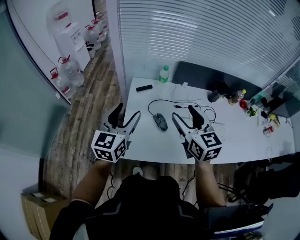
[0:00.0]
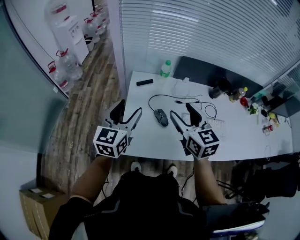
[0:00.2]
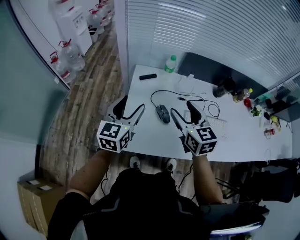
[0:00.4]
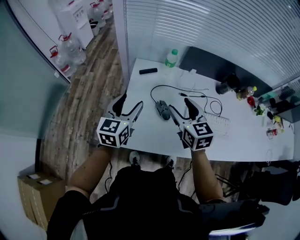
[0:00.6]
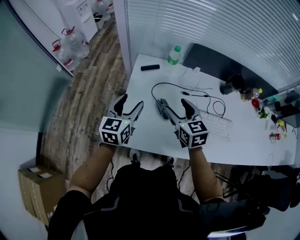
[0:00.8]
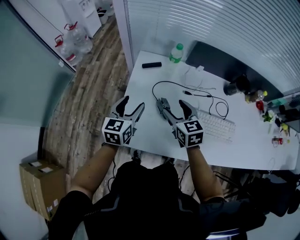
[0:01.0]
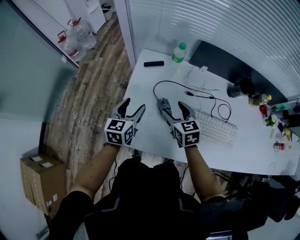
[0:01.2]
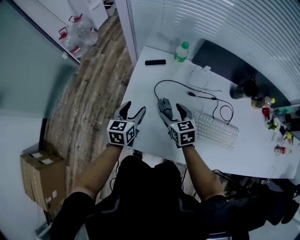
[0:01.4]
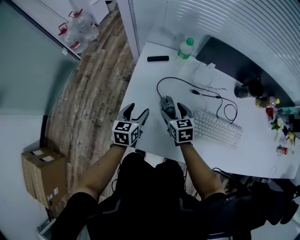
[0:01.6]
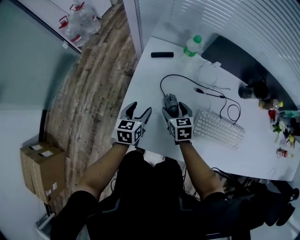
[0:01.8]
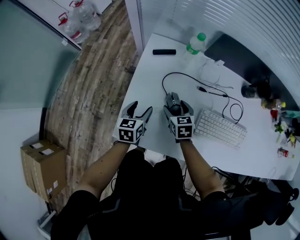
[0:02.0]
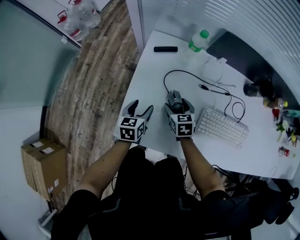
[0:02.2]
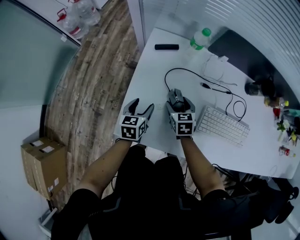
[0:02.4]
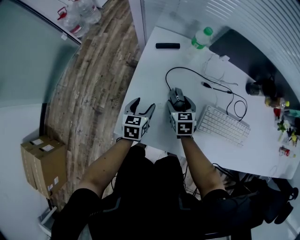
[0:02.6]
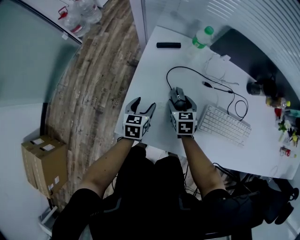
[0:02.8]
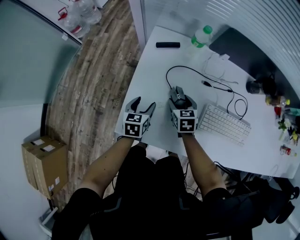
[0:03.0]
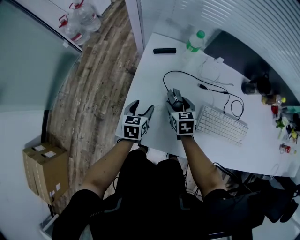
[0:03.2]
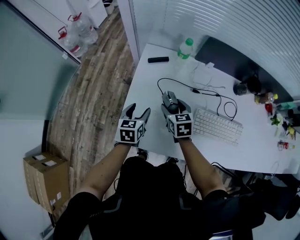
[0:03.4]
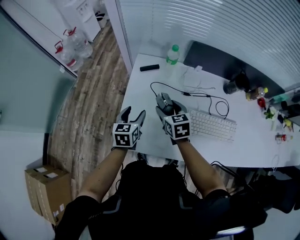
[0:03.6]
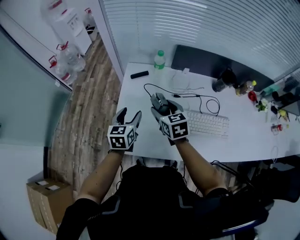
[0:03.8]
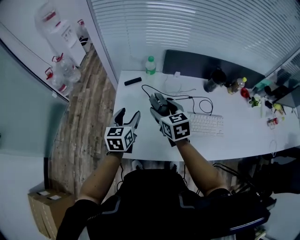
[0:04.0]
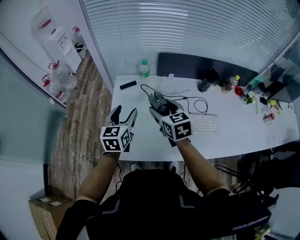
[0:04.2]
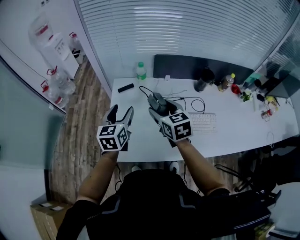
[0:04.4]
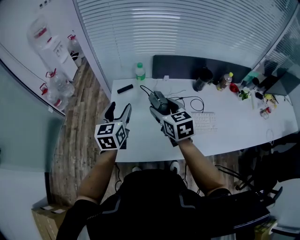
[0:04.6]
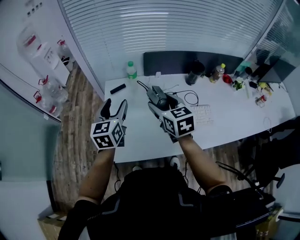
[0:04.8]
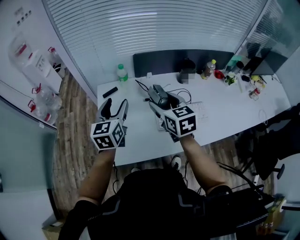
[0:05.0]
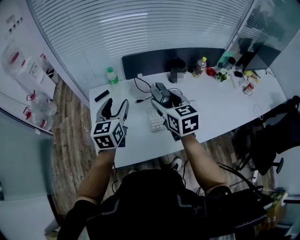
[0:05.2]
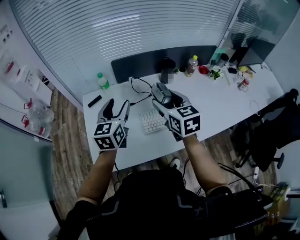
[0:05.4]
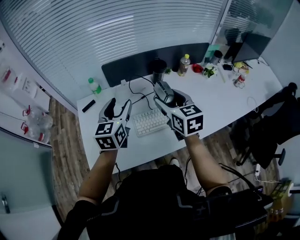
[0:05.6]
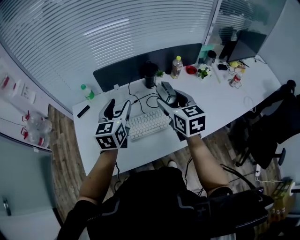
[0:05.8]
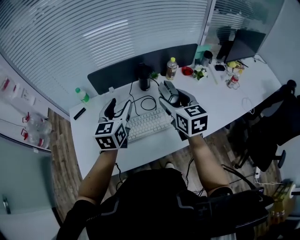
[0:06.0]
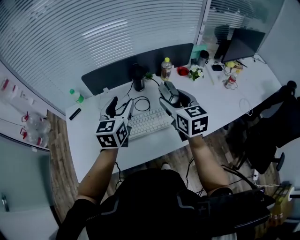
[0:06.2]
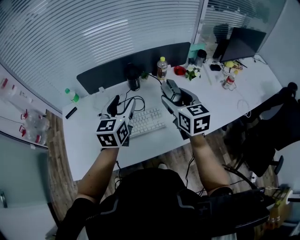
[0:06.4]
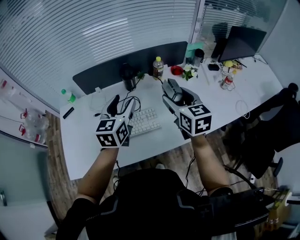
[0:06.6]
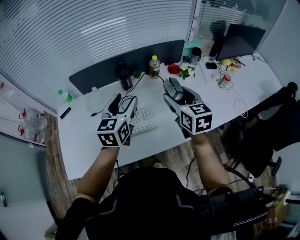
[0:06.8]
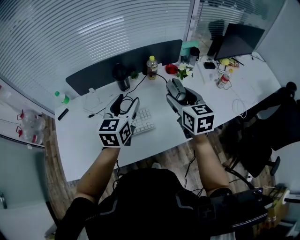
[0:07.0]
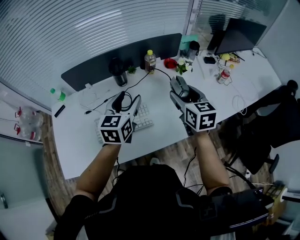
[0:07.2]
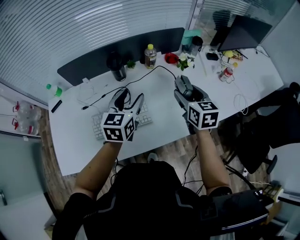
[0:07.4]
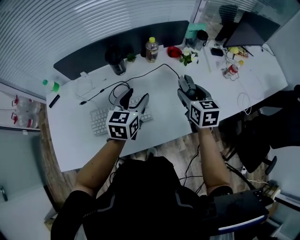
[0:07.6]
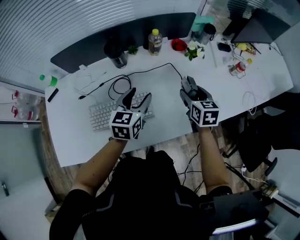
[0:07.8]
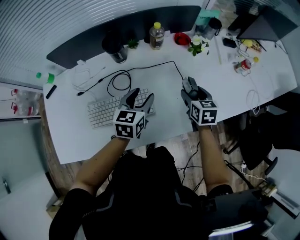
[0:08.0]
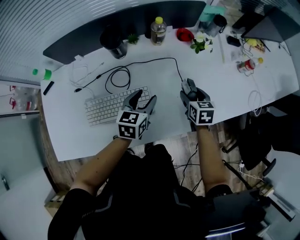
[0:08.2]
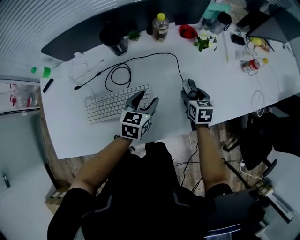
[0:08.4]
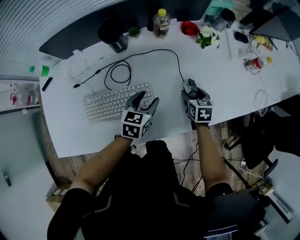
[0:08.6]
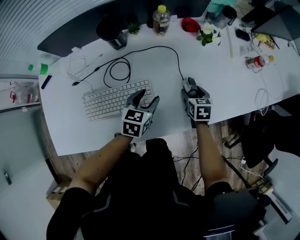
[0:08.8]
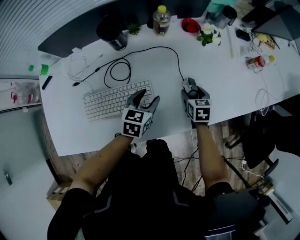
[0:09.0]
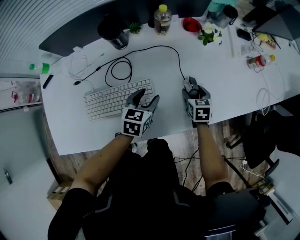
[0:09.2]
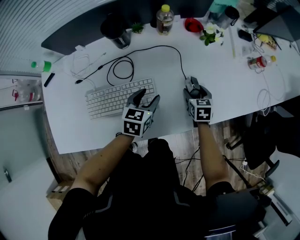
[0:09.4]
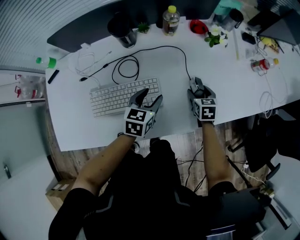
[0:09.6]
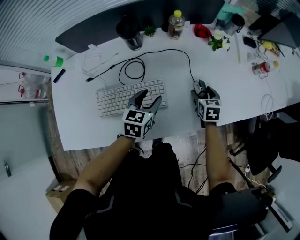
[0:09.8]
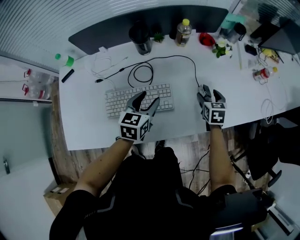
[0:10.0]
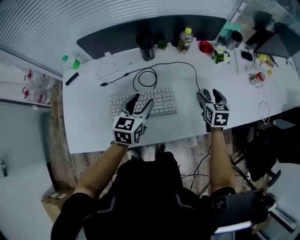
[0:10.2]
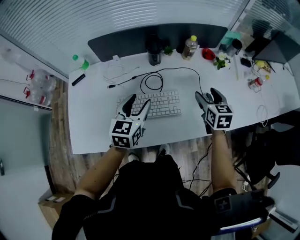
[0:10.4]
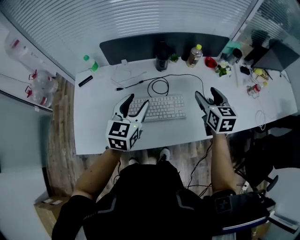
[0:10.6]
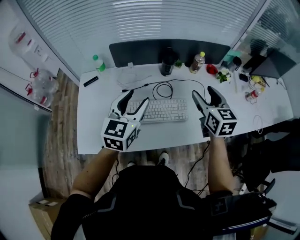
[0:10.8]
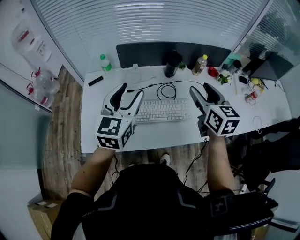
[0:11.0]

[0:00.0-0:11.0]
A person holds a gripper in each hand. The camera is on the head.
0:00.0 to 0:01.6: The two grippers go some 30 cm downward. The left gripper turns by some 30 degrees. The right gripper rotates some 30 degrees.
0:03.2 to 0:04.8: Both grippers travel together upward, roughly 30 cm. The right gripper rotates about 20 degrees; the left gripper turns by about 30 degrees.
0:04.8 to 0:06.2: Both grippers move to the right, about 35 cm.
0:06.2 to 0:07.8: The two grippers go roughly 25 cm to the right and downward. The right gripper rotates about 20 degrees.
0:07.8 to 0:09.4: Both grippers travel together downward, some 15 cm.
0:09.4 to 0:11.0: Both grippers move upward and to the left, roughly 50 cm. The left gripper angles its fingers upward, by about 30 degrees, while the right gripper tilts its fingers roughly 30 degrees upward.

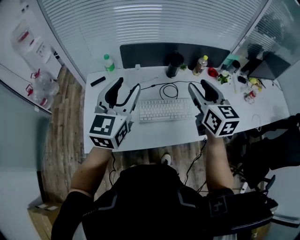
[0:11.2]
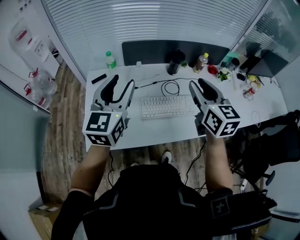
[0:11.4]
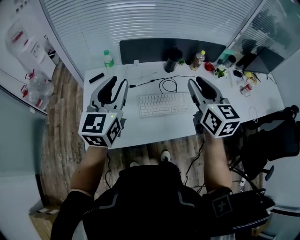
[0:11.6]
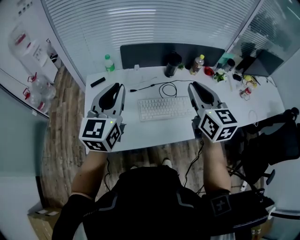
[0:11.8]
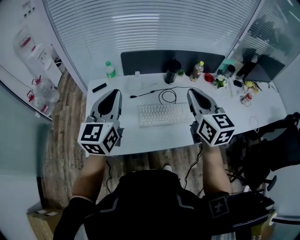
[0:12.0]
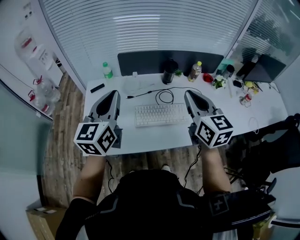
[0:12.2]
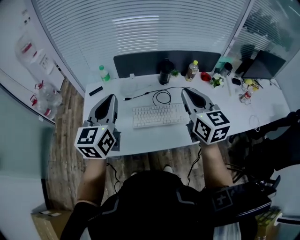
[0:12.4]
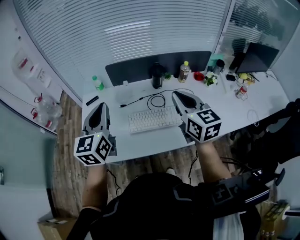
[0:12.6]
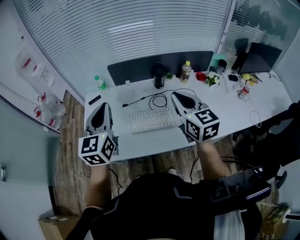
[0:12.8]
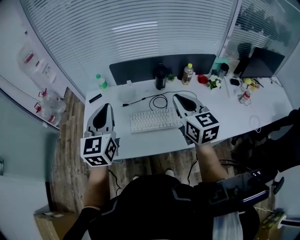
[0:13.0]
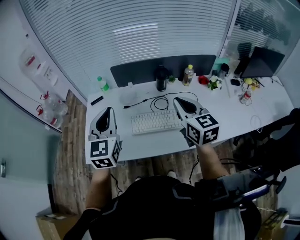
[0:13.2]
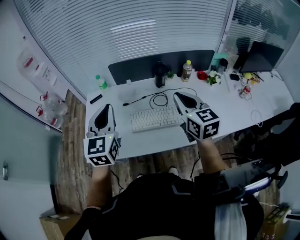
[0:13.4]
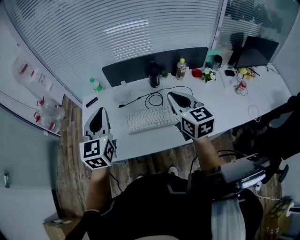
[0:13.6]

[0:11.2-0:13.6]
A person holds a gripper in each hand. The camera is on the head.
0:11.2 to 0:12.4: The left gripper closes; the right gripper closes up.
0:12.4 to 0:13.6: The grippers make only small movements.

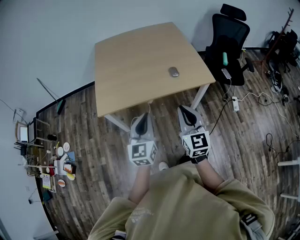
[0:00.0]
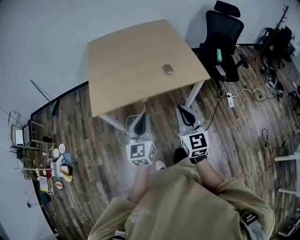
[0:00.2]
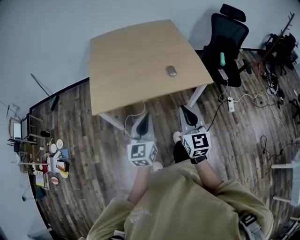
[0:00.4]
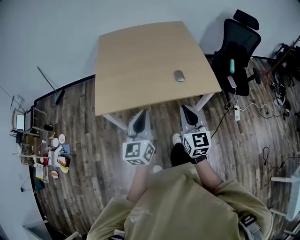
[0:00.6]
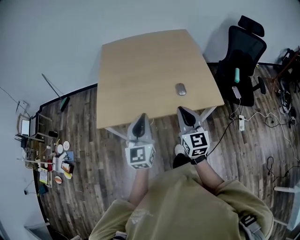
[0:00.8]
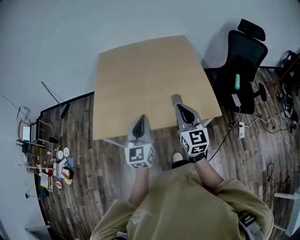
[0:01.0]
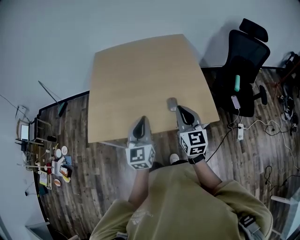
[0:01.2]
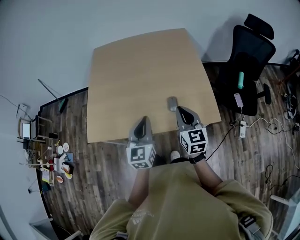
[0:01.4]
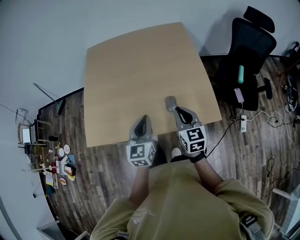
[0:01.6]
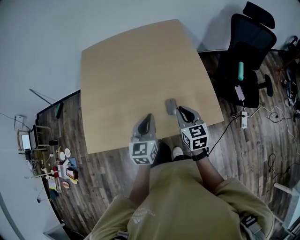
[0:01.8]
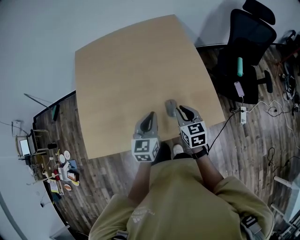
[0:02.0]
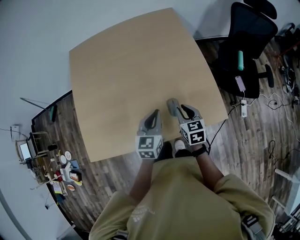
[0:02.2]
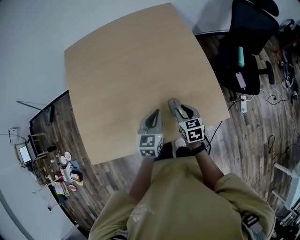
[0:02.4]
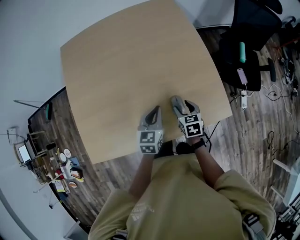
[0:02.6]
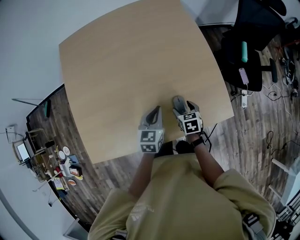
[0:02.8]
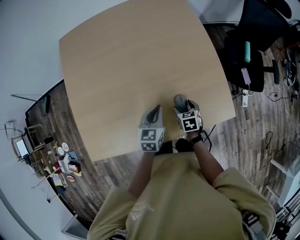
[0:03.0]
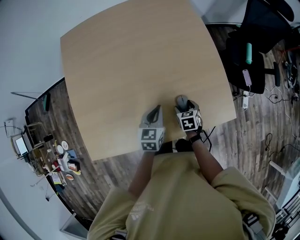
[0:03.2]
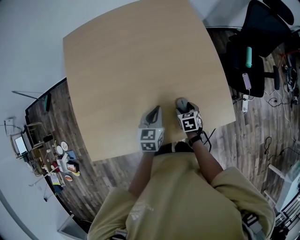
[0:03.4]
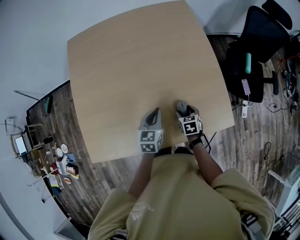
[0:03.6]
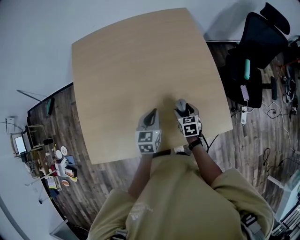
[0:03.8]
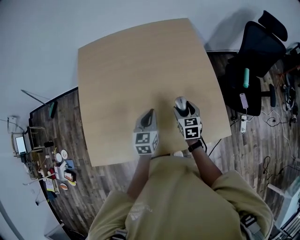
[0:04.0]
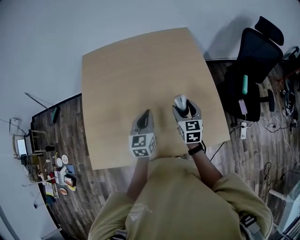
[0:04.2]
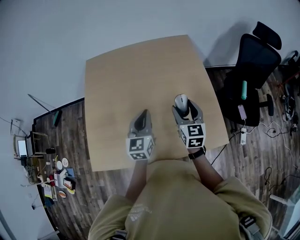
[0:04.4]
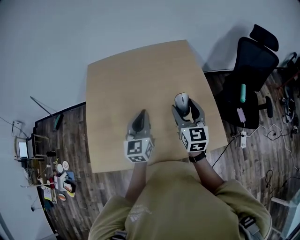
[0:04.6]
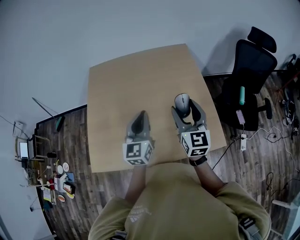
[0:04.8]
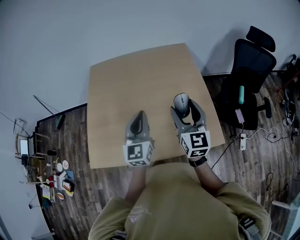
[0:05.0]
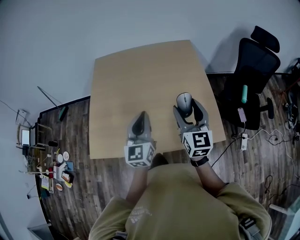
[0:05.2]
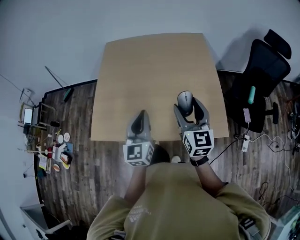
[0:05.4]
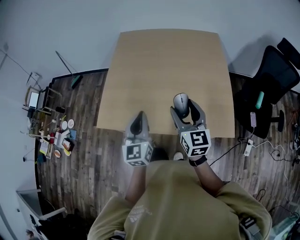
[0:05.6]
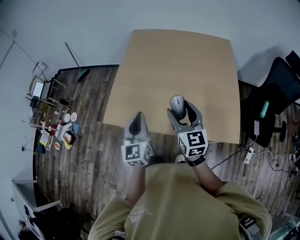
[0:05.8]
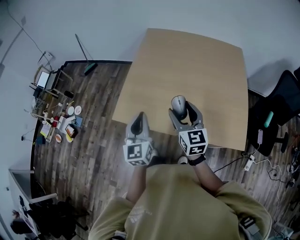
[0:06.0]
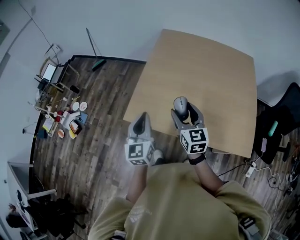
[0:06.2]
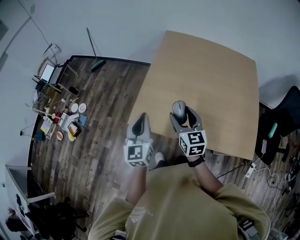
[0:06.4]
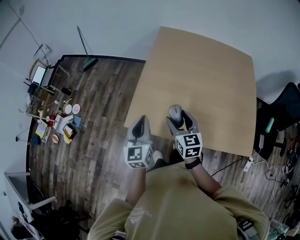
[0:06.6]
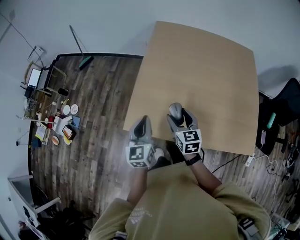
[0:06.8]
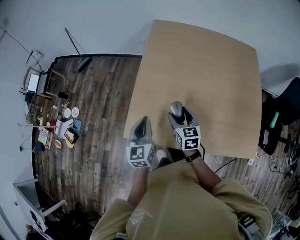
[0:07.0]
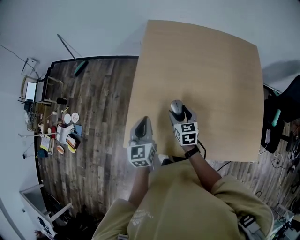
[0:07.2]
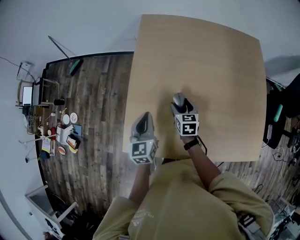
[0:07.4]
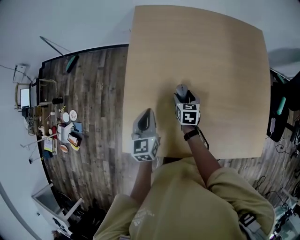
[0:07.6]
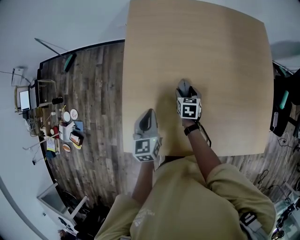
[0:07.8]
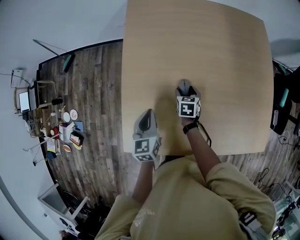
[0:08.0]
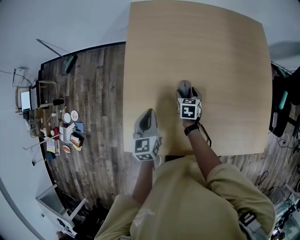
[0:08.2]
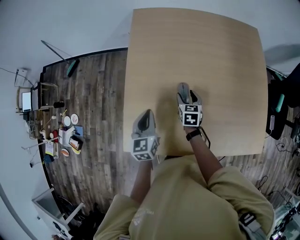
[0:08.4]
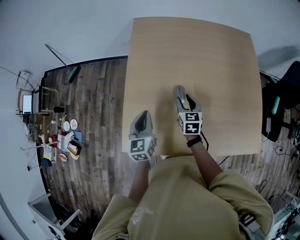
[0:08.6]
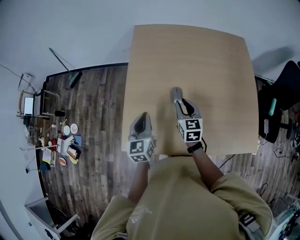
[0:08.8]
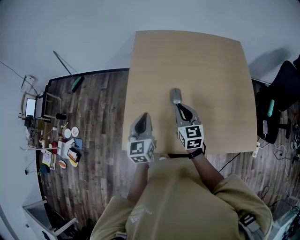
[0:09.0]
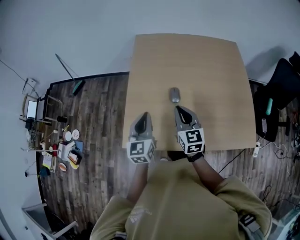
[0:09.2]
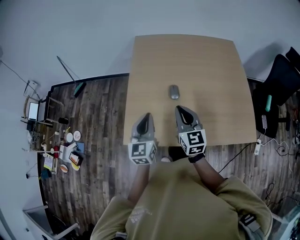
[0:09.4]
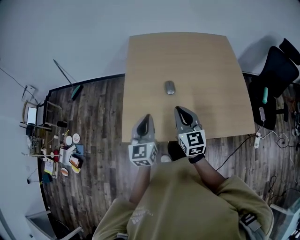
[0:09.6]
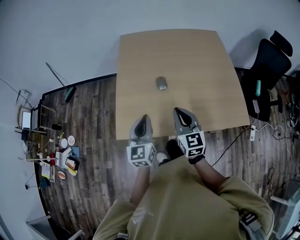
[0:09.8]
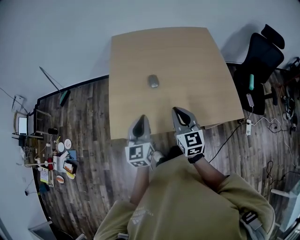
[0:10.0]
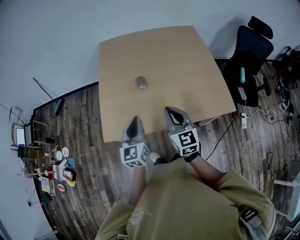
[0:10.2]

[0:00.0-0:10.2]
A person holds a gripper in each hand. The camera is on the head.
0:00.0 to 0:01.4: The right gripper heads forward, covering roughly 35 cm. The left gripper goes roughly 30 cm forward and to the right.
0:01.4 to 0:03.0: The right gripper heads downward and forward, covering approximately 35 cm, angles its fingers downward, by approximately 50 degrees, and opens up, while the left gripper goes some 30 cm forward and downward, and swivels some 30 degrees.
0:03.0 to 0:04.4: The right gripper heads upward, covering roughly 30 cm, and tilts its fingers about 40 degrees upward. Meanwhile the left gripper heads upward, covering approximately 20 cm, and rotates approximately 30 degrees.
0:04.4 to 0:05.8: The left gripper changes place by roughly 30 cm, and rotates some 30 degrees. Meanwhile the right gripper moves about 25 cm, and changes its angle by about 30 degrees.
0:05.8 to 0:07.2: The right gripper moves forward, downward and to the left, roughly 40 cm, and swivels approximately 30 degrees. Meanwhile the left gripper goes some 30 cm forward, to the left and downward.
0:07.2 to 0:08.8: The left gripper moves some 10 cm downward and comes back; the right gripper goes some 5 cm to the right, reaches about 15 cm downward, then returns, and closes up.
0:08.8 to 0:10.2: The left gripper travels backward by roughly 20 cm; the right gripper travels backward and upward by approximately 30 cm.
